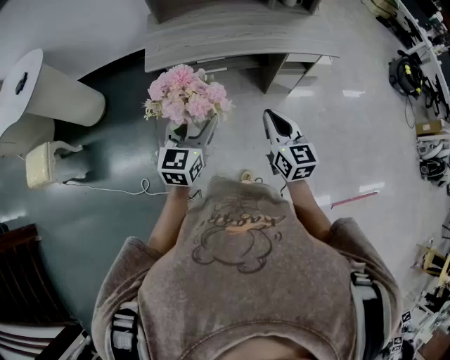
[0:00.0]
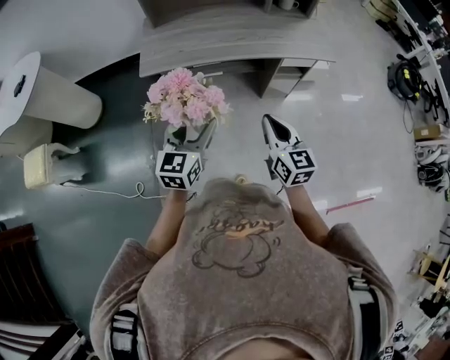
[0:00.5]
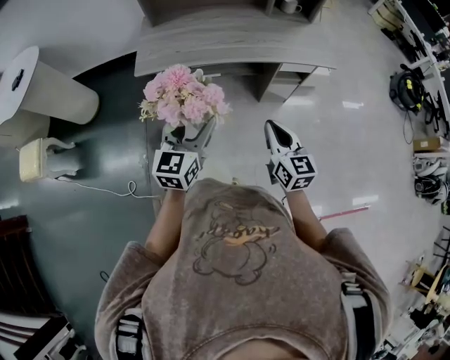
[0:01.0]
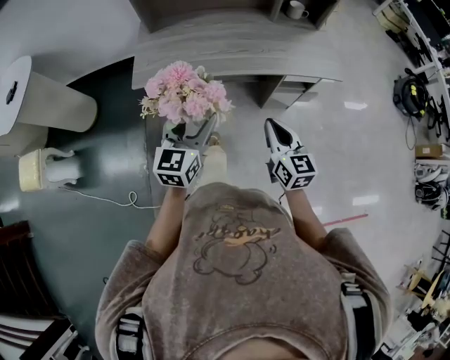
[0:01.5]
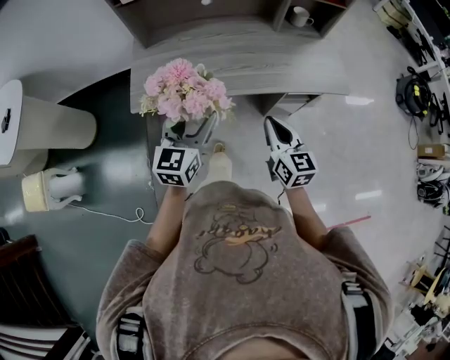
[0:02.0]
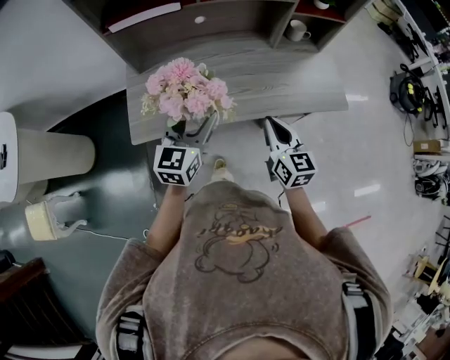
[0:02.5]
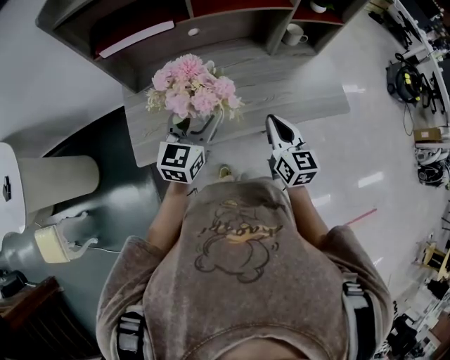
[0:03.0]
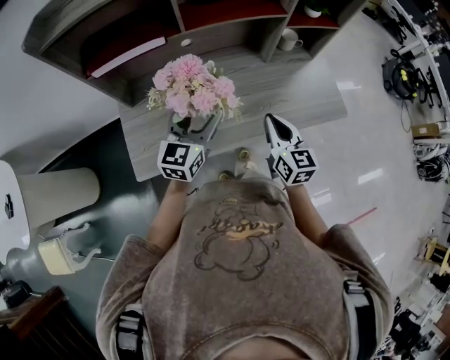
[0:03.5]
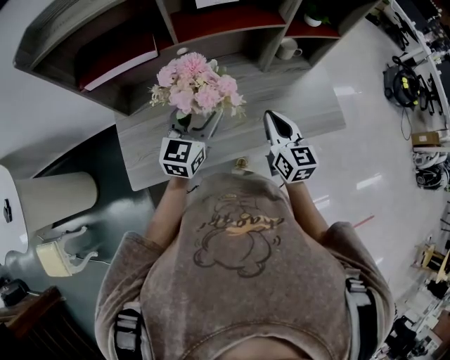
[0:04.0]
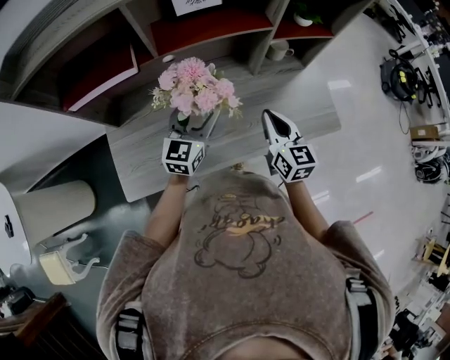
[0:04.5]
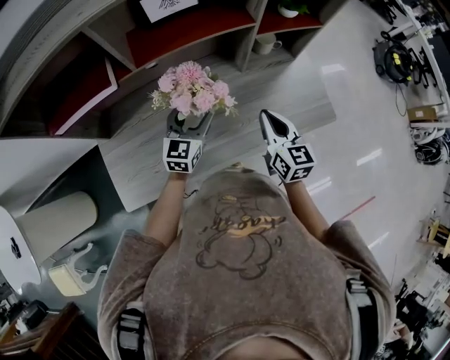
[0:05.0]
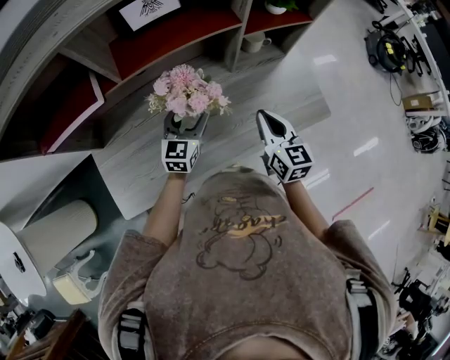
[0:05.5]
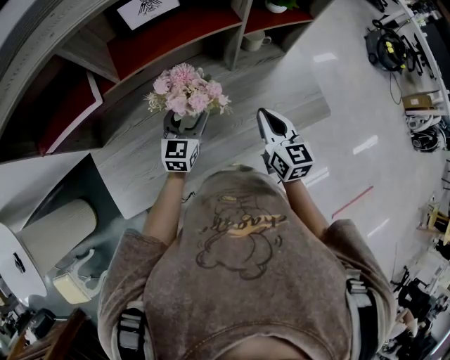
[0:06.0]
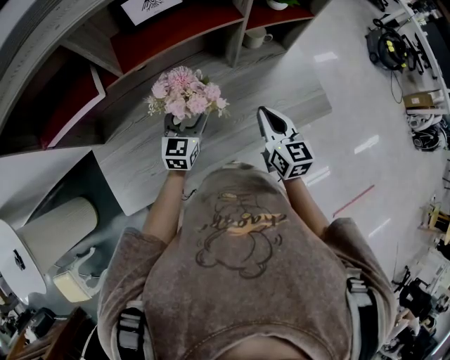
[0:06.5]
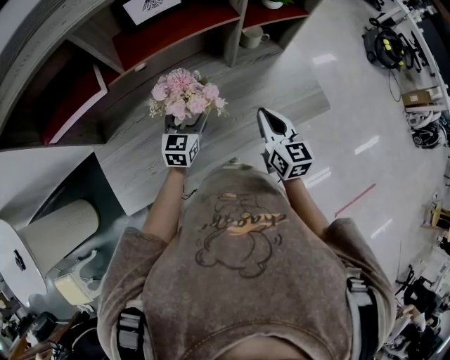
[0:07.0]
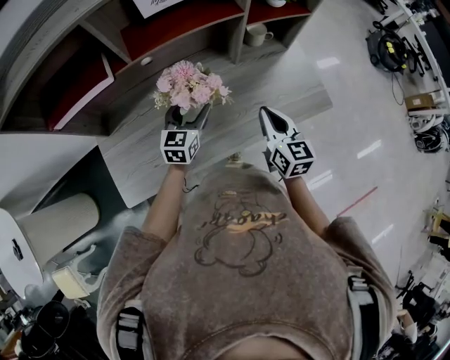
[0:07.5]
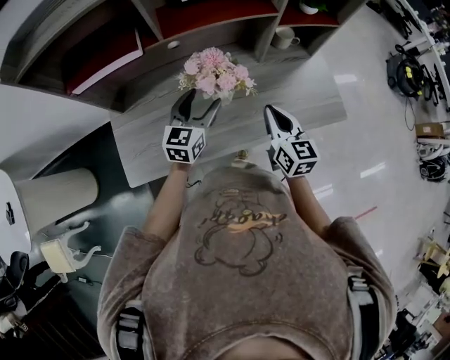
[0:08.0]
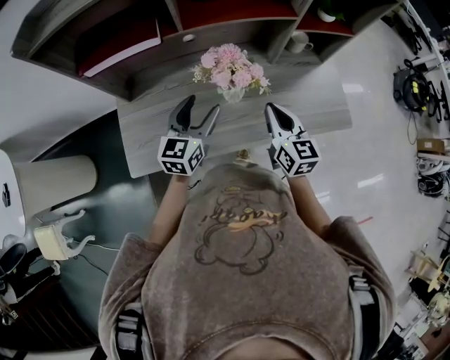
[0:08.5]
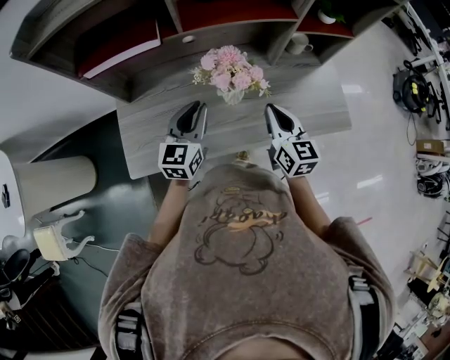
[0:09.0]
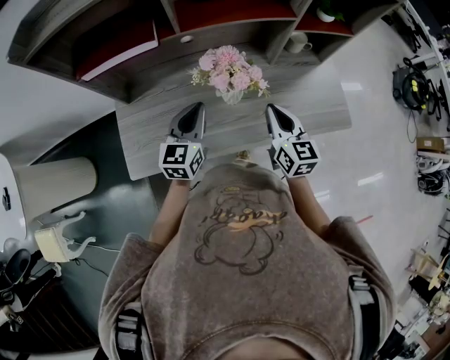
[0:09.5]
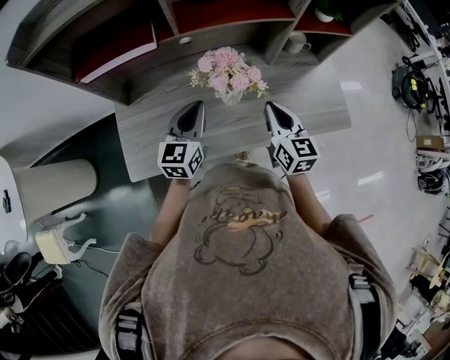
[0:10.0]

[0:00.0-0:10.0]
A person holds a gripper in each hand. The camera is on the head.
0:00.0 to 0:02.0: Both grippers move forward, roughly 25 cm.
0:02.0 to 0:04.0: The grippers both shift forward by roughly 30 cm.
0:04.0 to 0:06.0: The left gripper moves downward and forward, approximately 10 cm; the right gripper heads to the right, covering approximately 5 cm.
0:06.0 to 0:08.0: The left gripper ends up roughly 5 cm from where it was.
0:08.0 to 0:10.0: The left gripper shifts by approximately 5 cm, and closes.

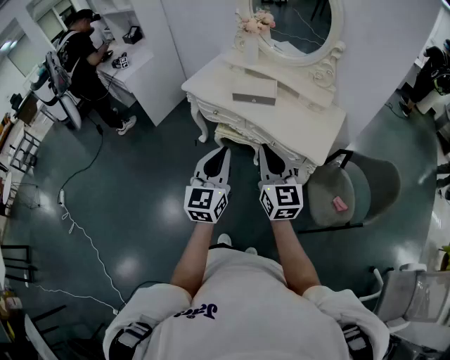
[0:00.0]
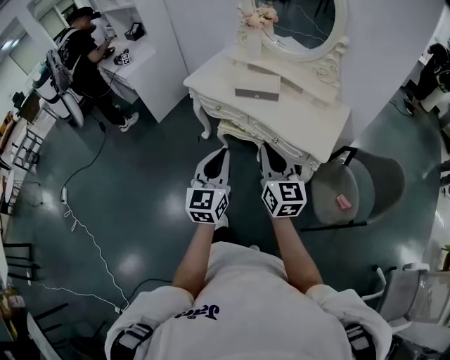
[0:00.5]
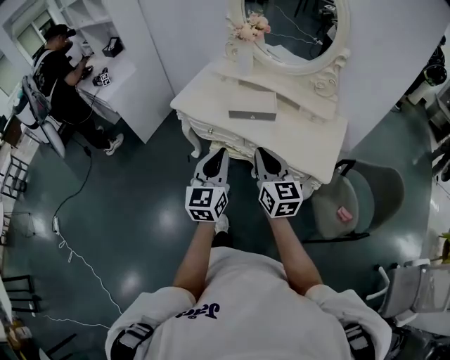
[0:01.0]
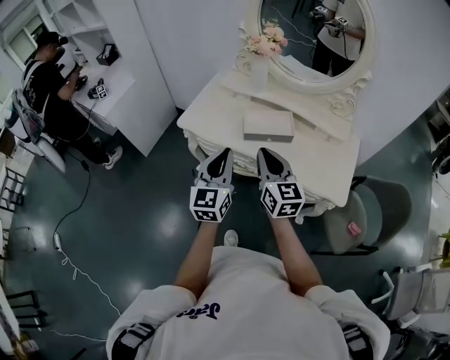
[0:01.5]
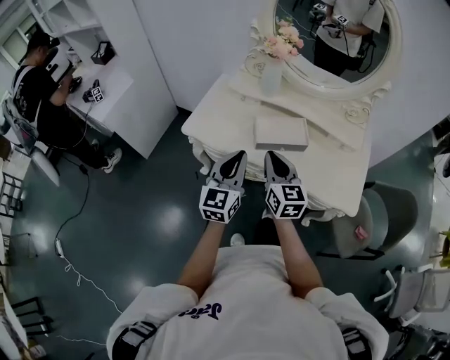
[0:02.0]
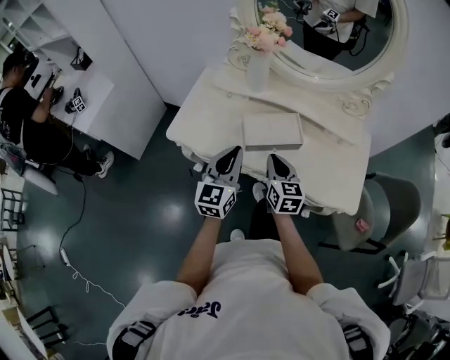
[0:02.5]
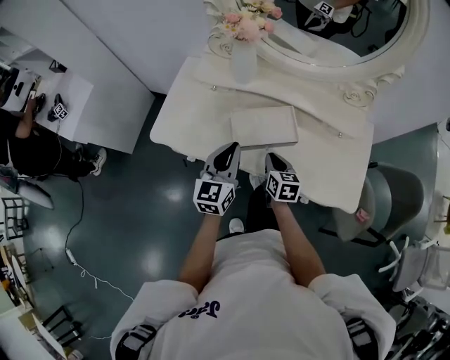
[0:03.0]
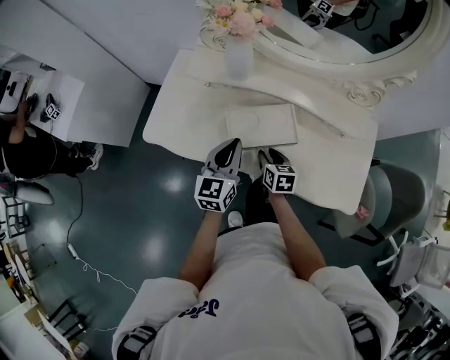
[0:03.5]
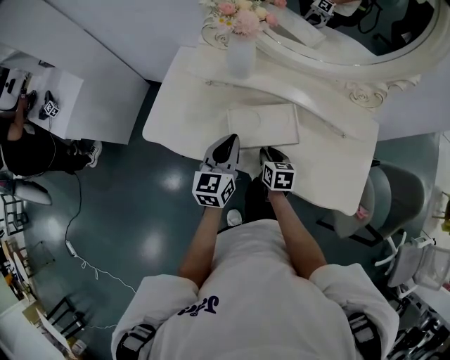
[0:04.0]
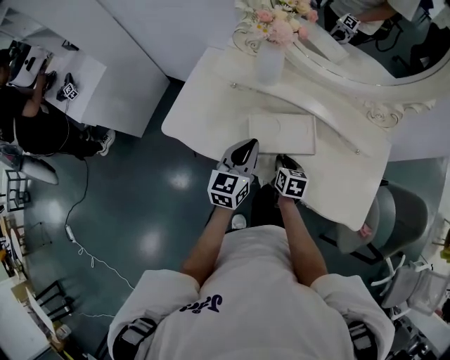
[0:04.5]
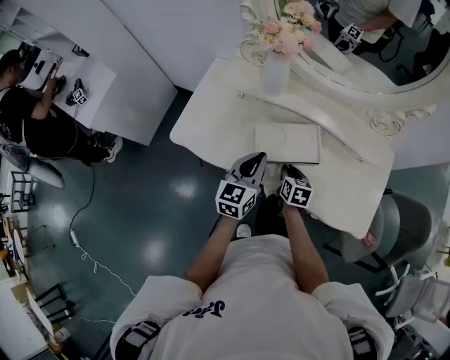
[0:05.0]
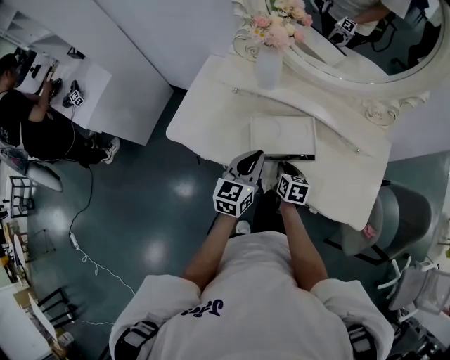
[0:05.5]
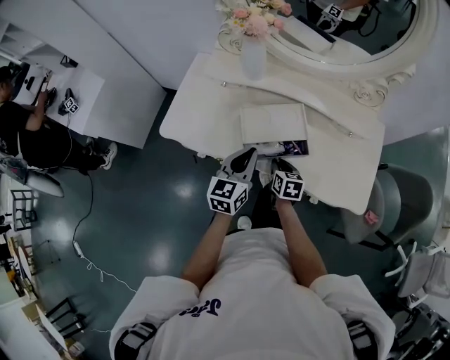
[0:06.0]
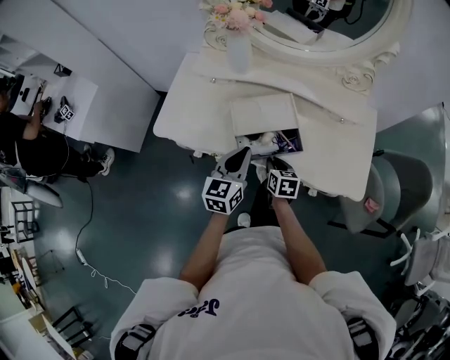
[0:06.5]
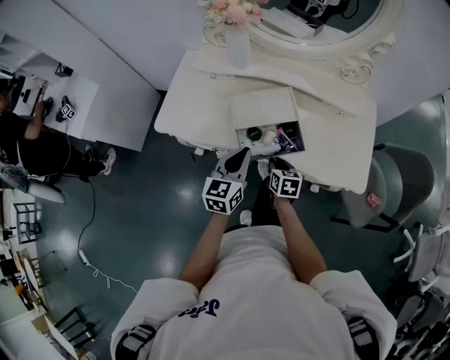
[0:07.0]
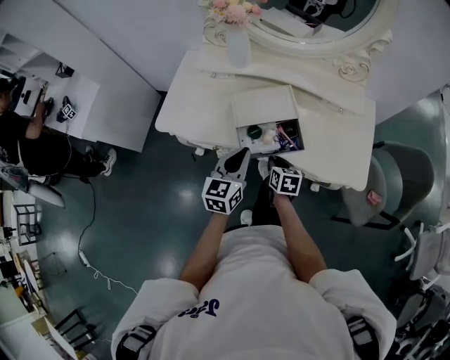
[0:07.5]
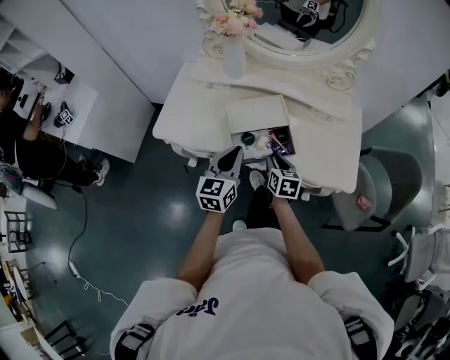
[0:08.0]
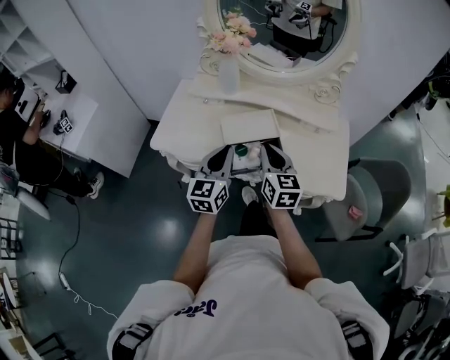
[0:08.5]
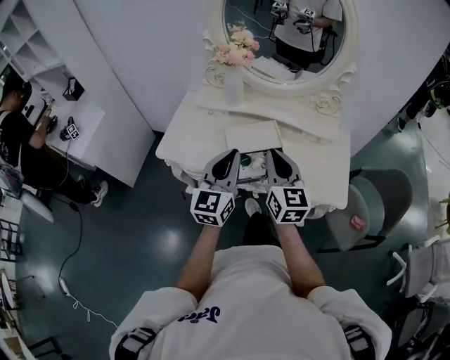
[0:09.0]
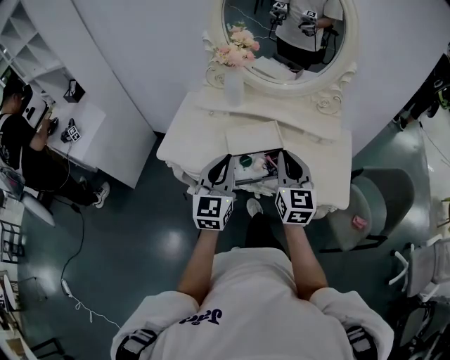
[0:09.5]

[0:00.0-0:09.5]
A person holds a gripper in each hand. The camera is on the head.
0:00.0 to 0:02.0: The right gripper travels forward and to the left by approximately 40 cm, while the left gripper moves forward, approximately 35 cm.
0:02.0 to 0:04.0: The left gripper travels forward and downward by roughly 25 cm; the right gripper shifts approximately 30 cm downward and forward, and tilts its fingers approximately 40 degrees downward.
0:04.0 to 0:05.5: The grippers move only a little.
0:05.5 to 0:07.5: The grippers both shift backward by roughly 10 cm.
0:07.5 to 0:09.5: The left gripper is displaced upward by about 15 cm, and changes its angle by about 20 degrees, while the right gripper goes roughly 30 cm upward, and angles its fingers upward, by some 40 degrees.

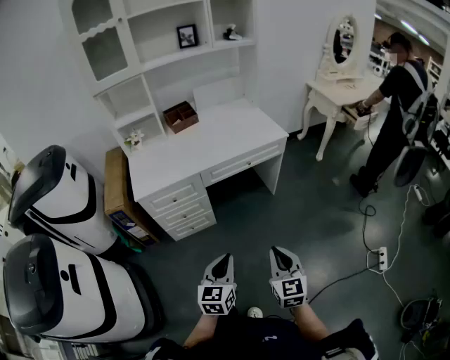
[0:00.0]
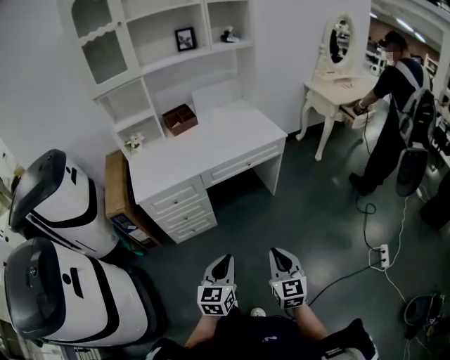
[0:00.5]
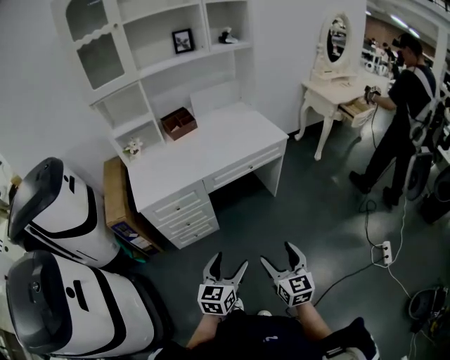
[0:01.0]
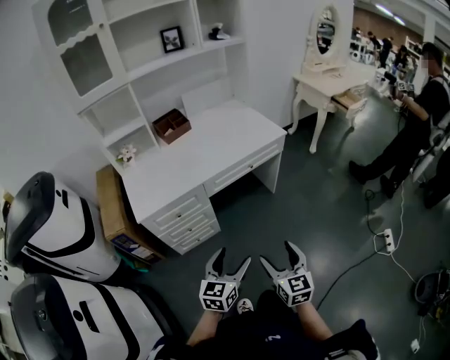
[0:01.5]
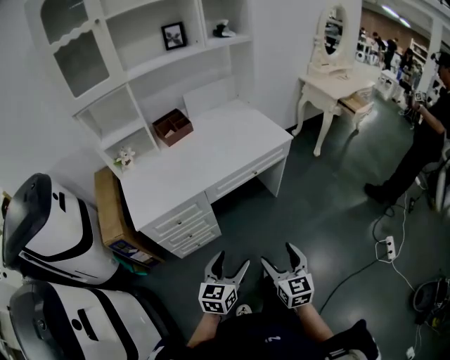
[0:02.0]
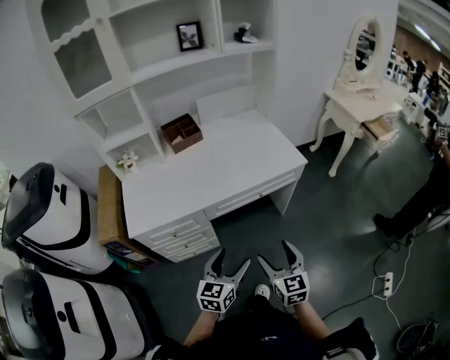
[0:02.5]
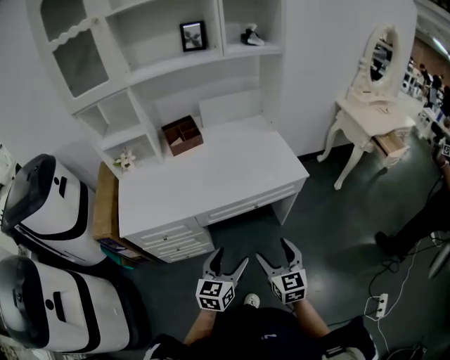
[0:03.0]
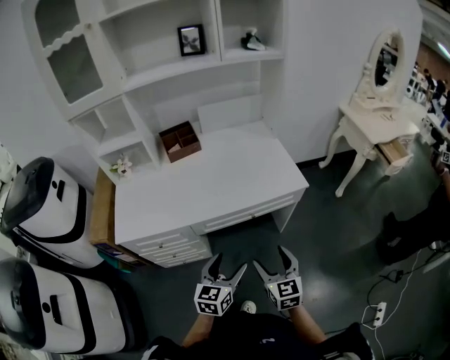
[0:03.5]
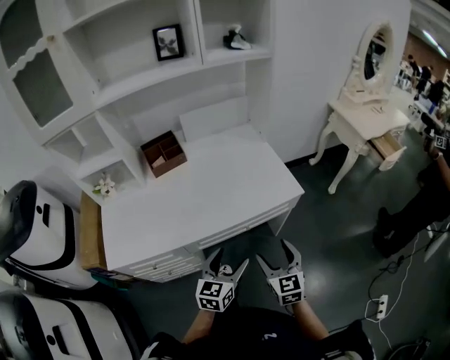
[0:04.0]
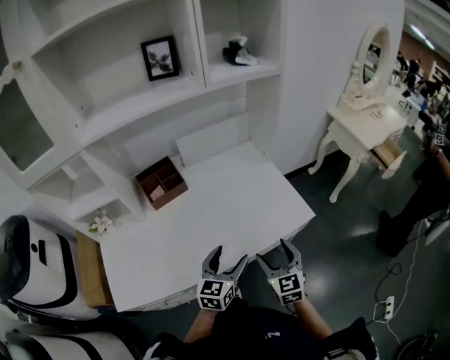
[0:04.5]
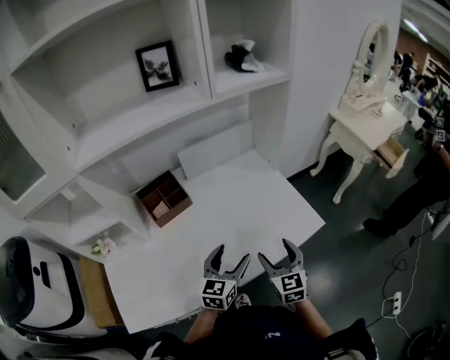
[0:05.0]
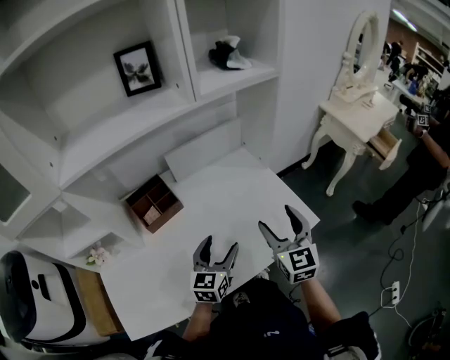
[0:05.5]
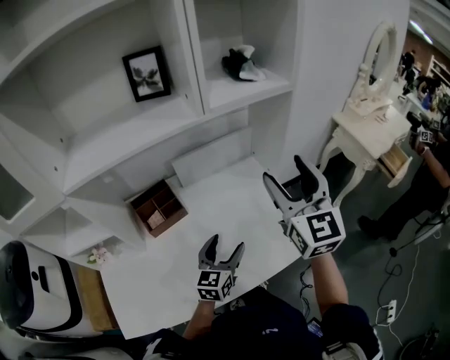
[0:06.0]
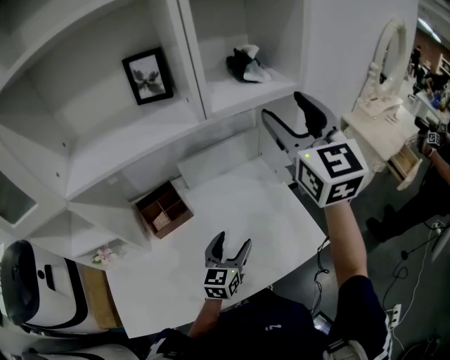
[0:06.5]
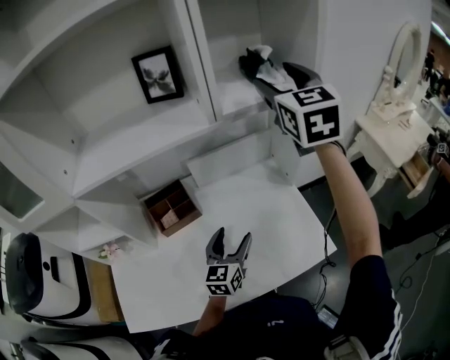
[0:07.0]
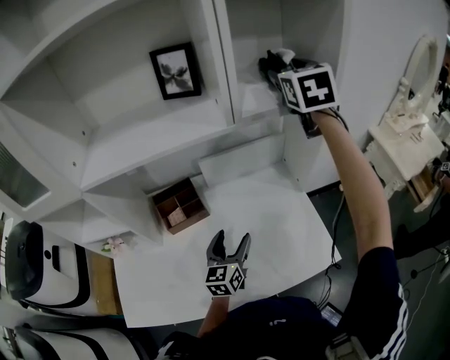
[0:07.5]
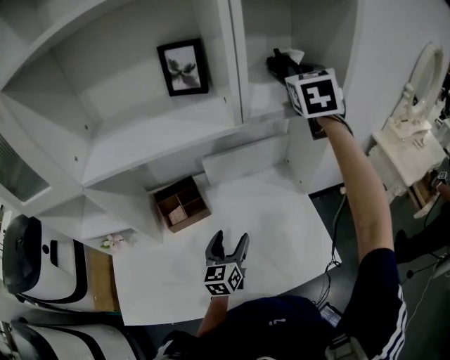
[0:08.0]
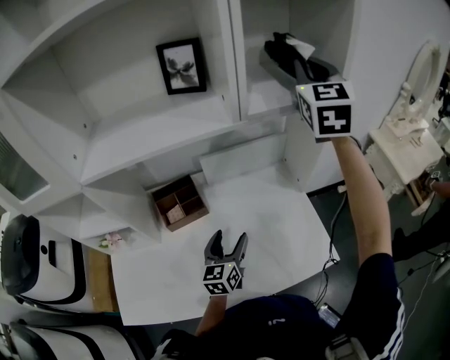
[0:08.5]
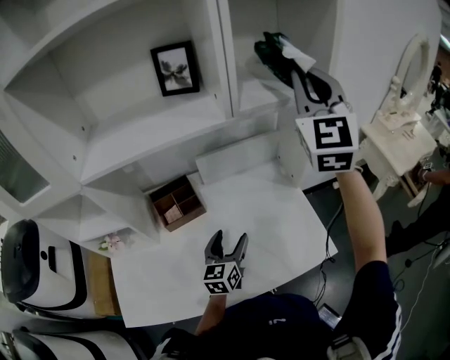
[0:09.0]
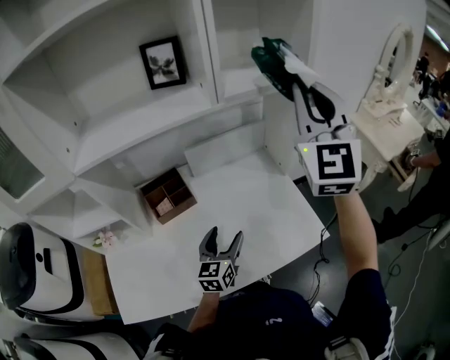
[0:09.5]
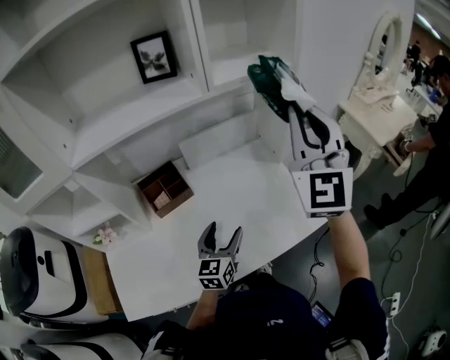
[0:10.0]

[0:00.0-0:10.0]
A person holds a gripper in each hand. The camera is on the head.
0:00.0 to 0:02.0: Both grippers move forward and to the left, some 15 cm. The right gripper opens its fingers. Meanwhile the left gripper opens up.
0:02.0 to 0:04.0: The left gripper heads forward and to the right, covering roughly 35 cm, while the right gripper moves forward, approximately 35 cm.
0:04.0 to 0:06.0: The left gripper goes approximately 30 cm forward, while the right gripper heads forward and upward, covering about 50 cm, and rotates approximately 20 degrees.
0:06.0 to 0:08.0: The right gripper is displaced forward and upward by approximately 30 cm, and closes up. The left gripper heads forward and to the left, covering about 10 cm, and rotates roughly 20 degrees.
0:08.0 to 0:10.0: The left gripper travels backward by approximately 10 cm; the right gripper goes some 30 cm backward, and changes its angle by about 30 degrees.
